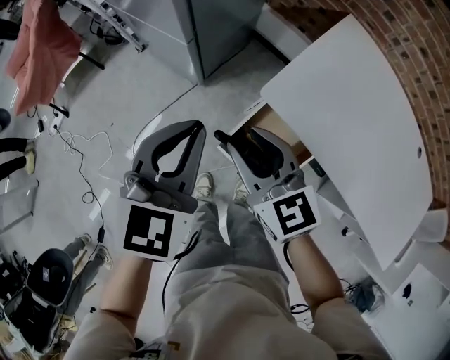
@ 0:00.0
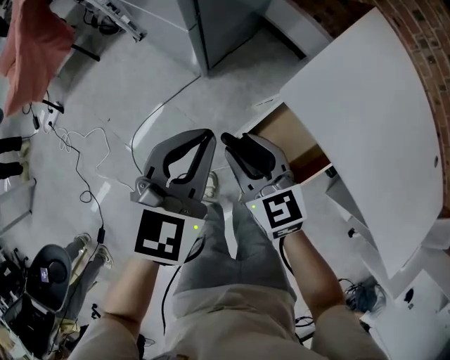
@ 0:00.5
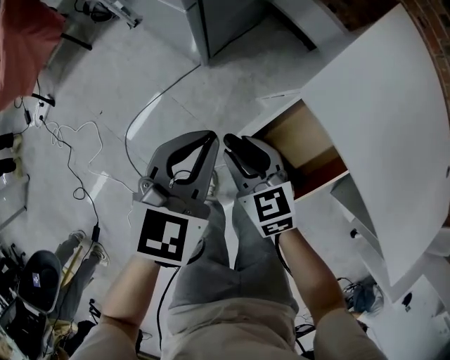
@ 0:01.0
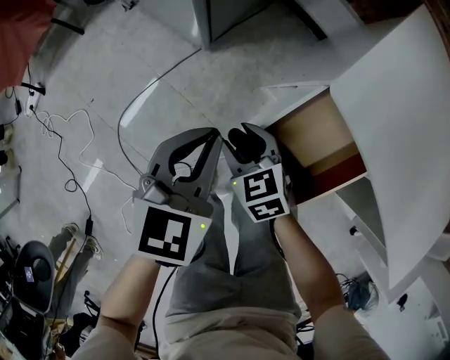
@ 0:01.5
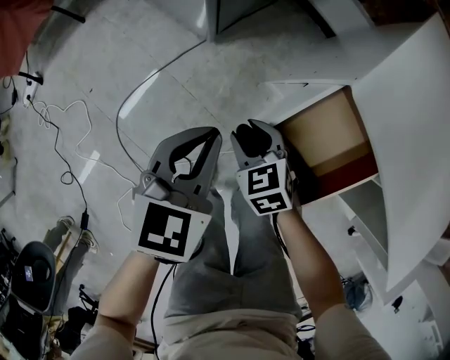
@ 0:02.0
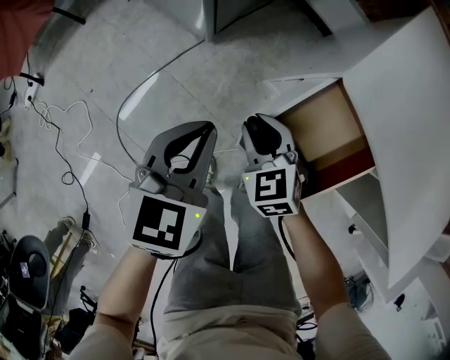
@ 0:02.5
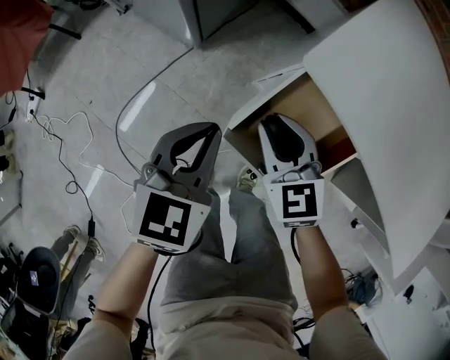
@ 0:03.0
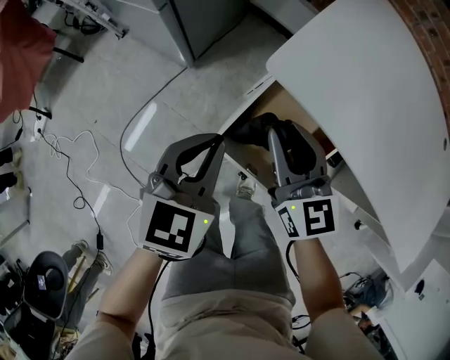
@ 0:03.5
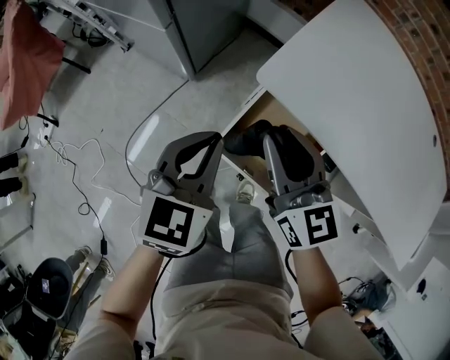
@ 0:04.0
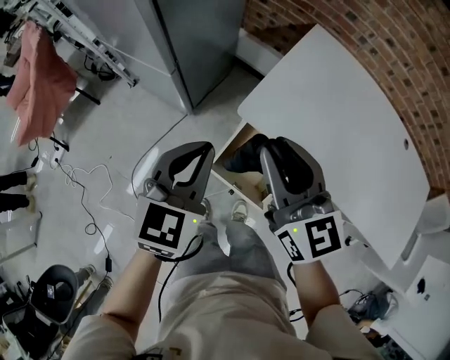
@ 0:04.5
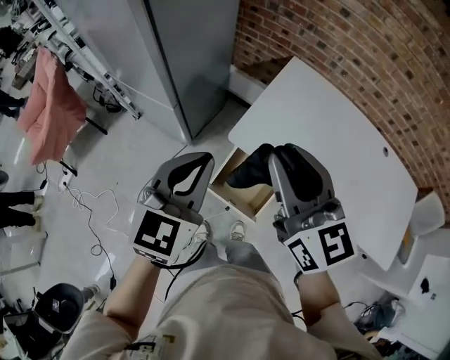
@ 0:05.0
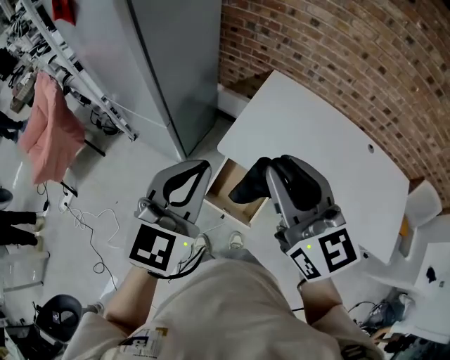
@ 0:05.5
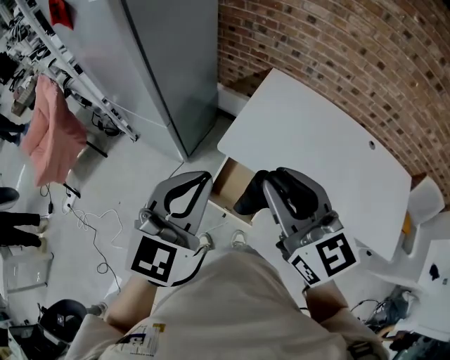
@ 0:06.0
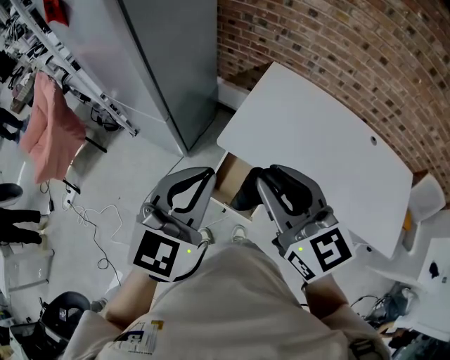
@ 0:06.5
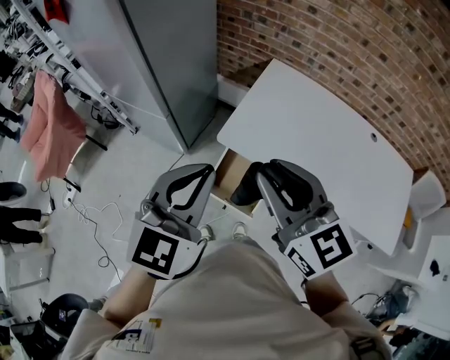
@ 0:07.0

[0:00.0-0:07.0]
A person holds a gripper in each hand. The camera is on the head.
0:00.0 to 0:02.0: Both grippers travel together downward, some 35 cm. The right gripper tips its fingers downward by roughly 30 degrees.
0:02.0 to 0:03.5: The right gripper travels upward and to the right by roughly 30 cm, and angles its fingers upward, by approximately 40 degrees. The left gripper shifts about 15 cm upward and to the right.
0:03.5 to 0:05.0: The two grippers go about 40 cm upward.
0:05.0 to 0:07.0: The left gripper shifts about 10 cm backward, upward and to the right. Meanwhile the right gripper shifts approximately 5 cm backward.

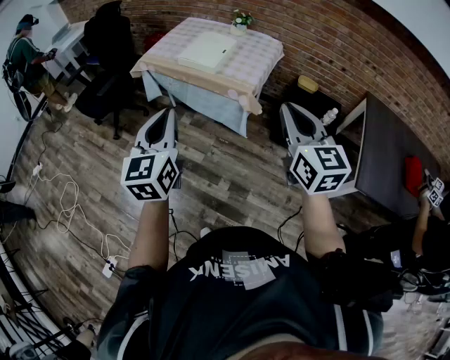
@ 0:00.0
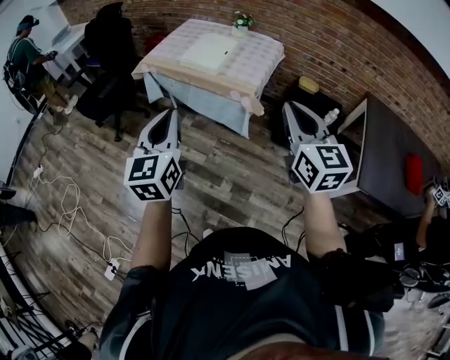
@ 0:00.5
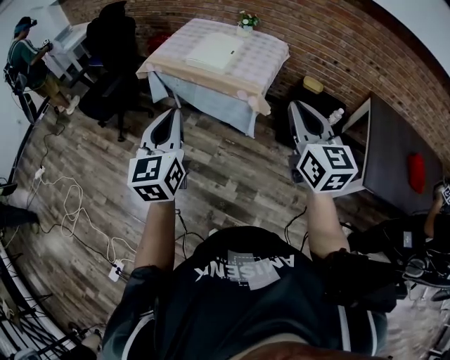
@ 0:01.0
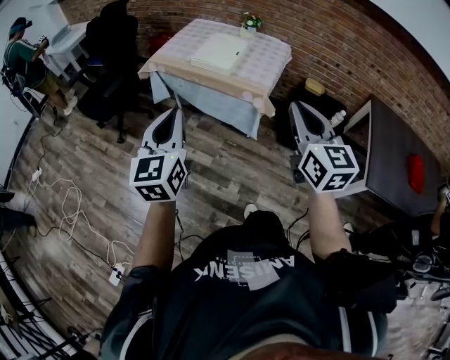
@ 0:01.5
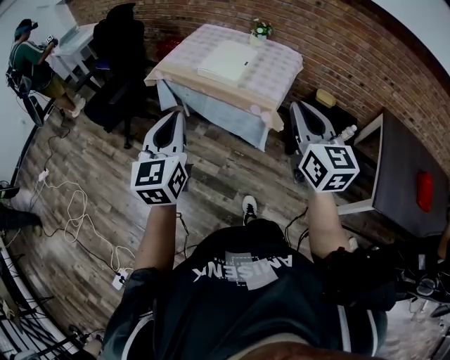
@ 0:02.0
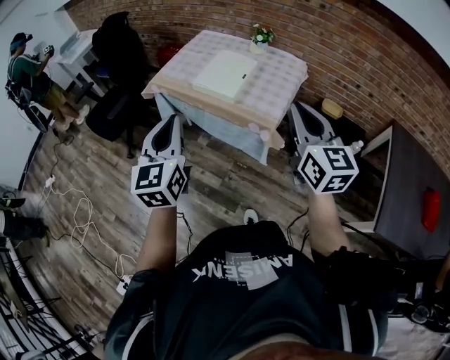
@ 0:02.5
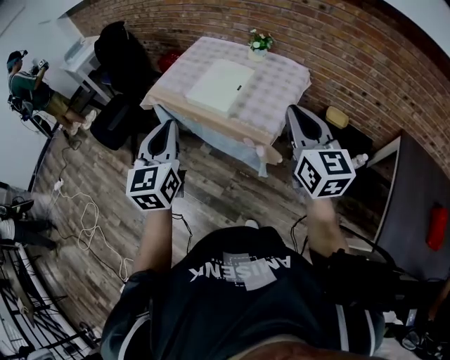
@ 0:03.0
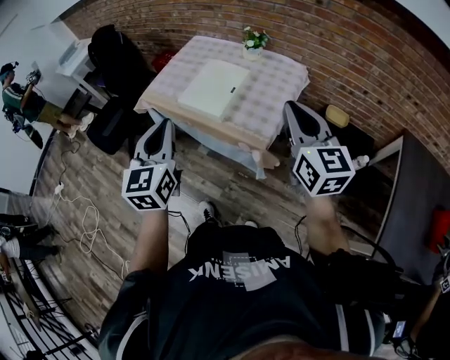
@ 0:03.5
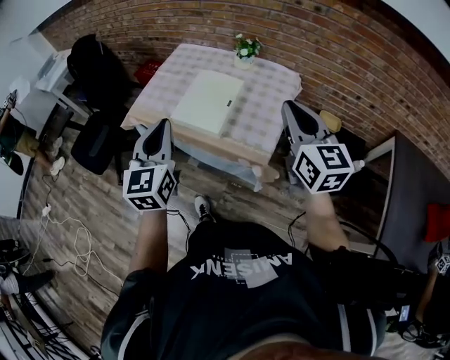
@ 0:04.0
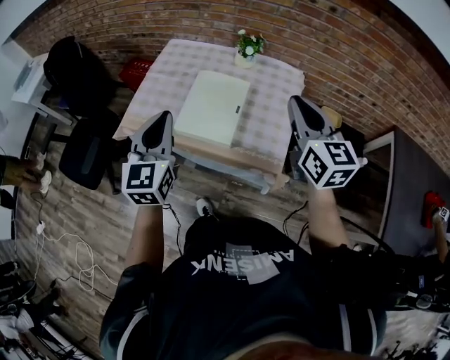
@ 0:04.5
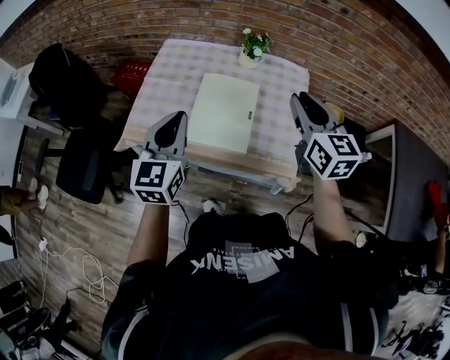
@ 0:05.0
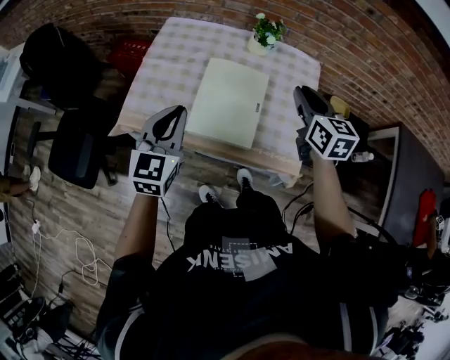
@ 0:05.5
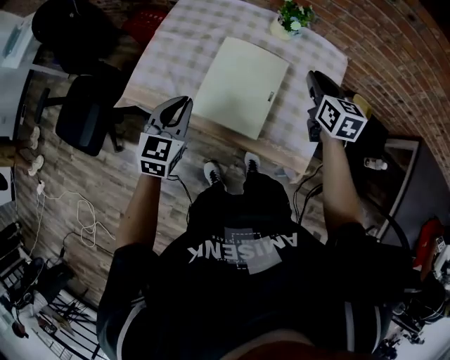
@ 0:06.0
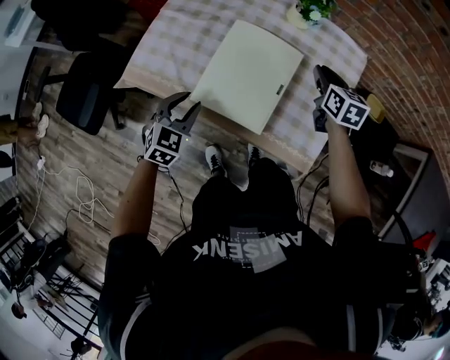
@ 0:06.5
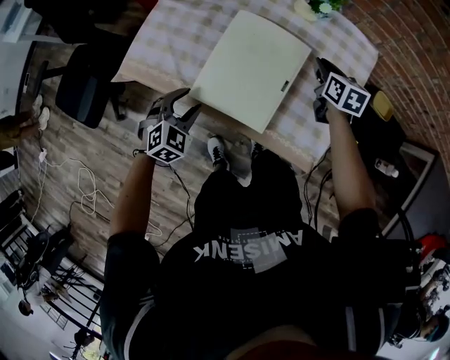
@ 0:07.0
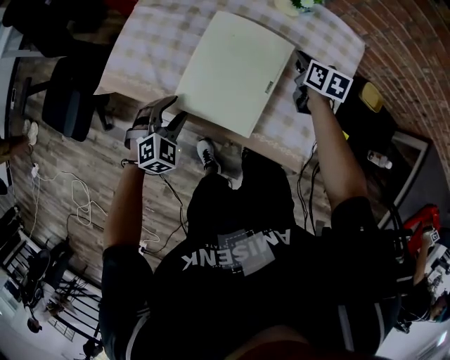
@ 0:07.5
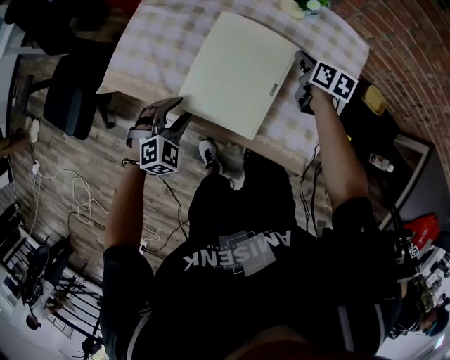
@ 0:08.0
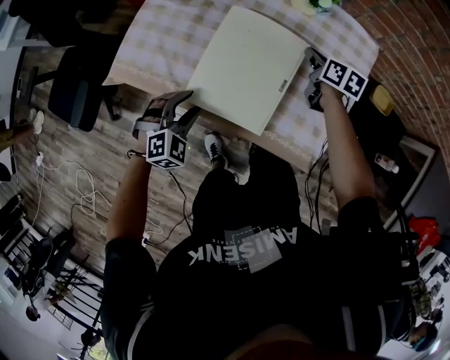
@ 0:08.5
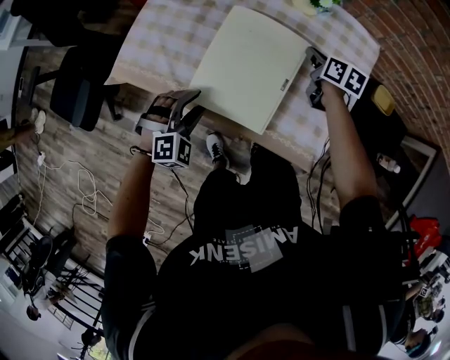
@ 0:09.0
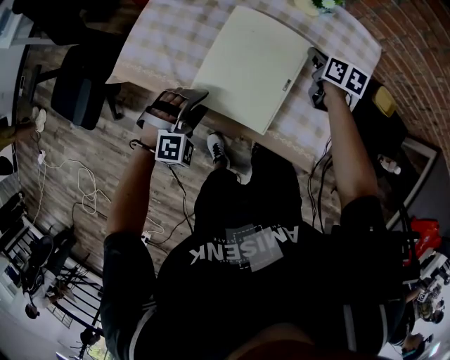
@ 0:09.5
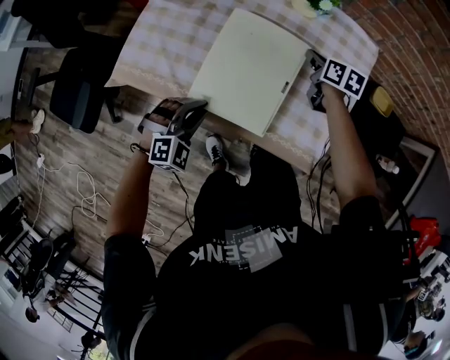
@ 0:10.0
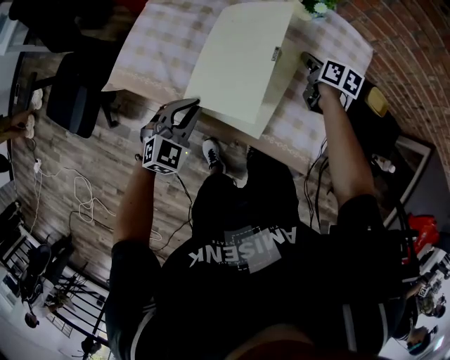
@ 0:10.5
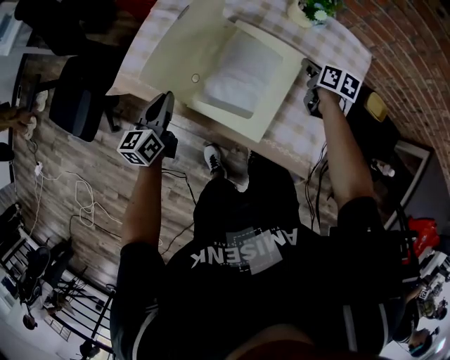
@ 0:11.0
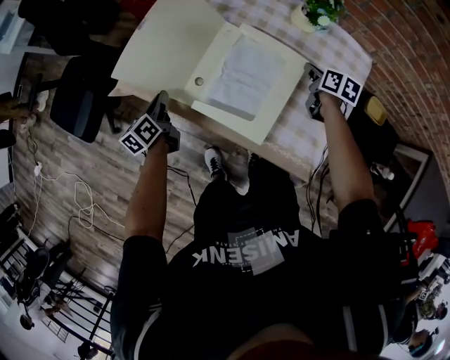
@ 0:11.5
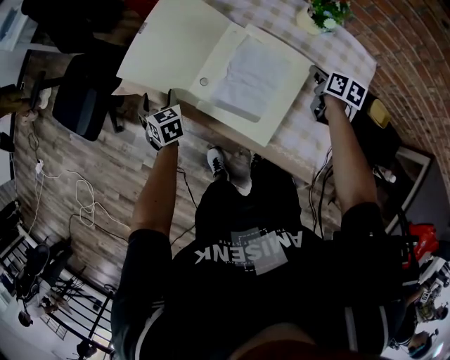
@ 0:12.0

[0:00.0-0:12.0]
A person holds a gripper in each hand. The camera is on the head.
0:00.0 to 0:02.0: The left gripper heads to the left and forward, covering approximately 10 cm, while the right gripper heads forward and to the left, covering some 15 cm.
0:02.0 to 0:04.0: Both grippers travel together forward, some 35 cm.
0:04.0 to 0:06.0: The right gripper travels forward and downward by about 35 cm, and swivels roughly 30 degrees, while the left gripper travels forward, downward and to the left by about 35 cm, and changes its angle by approximately 30 degrees.
0:06.0 to 0:08.0: The left gripper shifts some 15 cm downward, turns by some 40 degrees, and opens; the right gripper is displaced downward and forward by about 20 cm, and turns by roughly 30 degrees.
0:08.0 to 0:10.0: The left gripper closes.
0:10.0 to 0:12.0: The left gripper changes place by approximately 25 cm, twists approximately 70 degrees counterclockwise, seen from behind, and opens up.

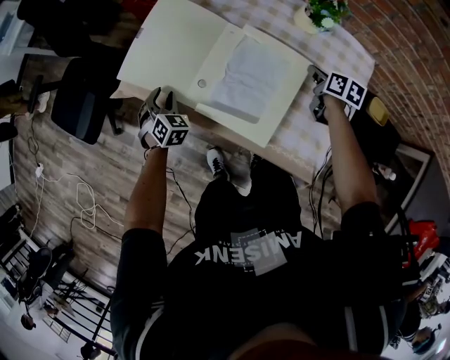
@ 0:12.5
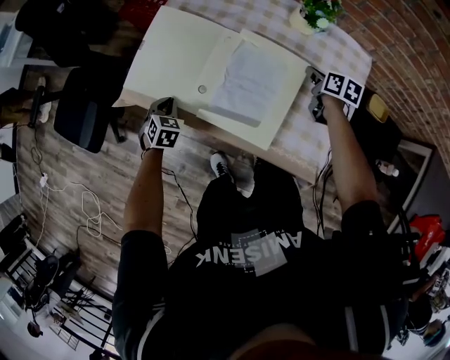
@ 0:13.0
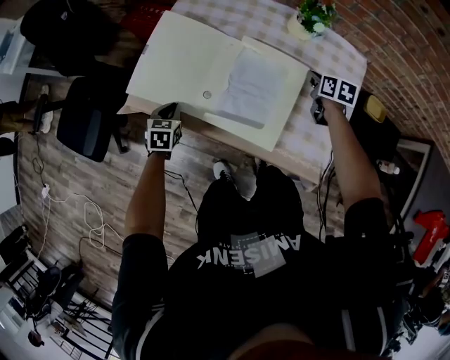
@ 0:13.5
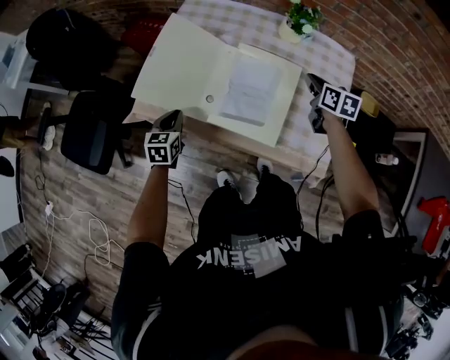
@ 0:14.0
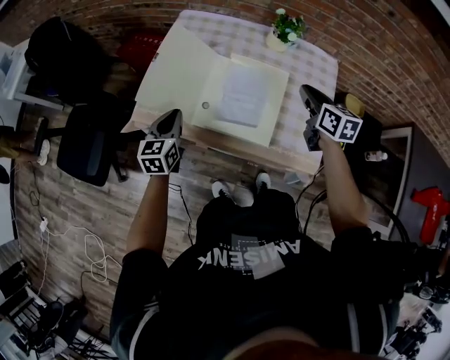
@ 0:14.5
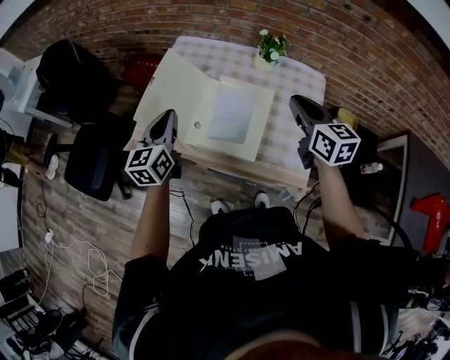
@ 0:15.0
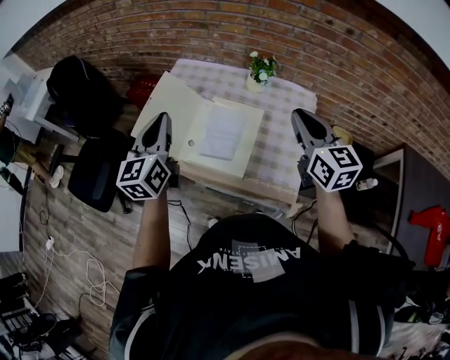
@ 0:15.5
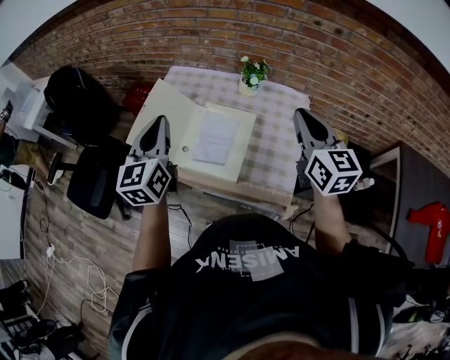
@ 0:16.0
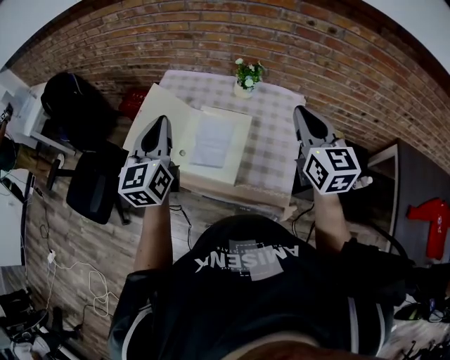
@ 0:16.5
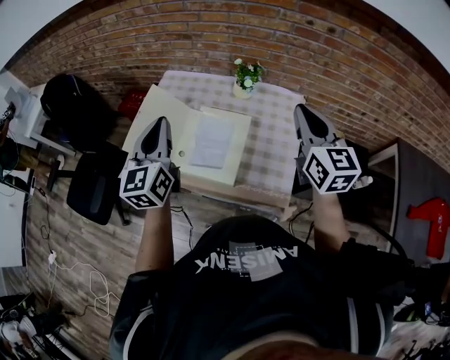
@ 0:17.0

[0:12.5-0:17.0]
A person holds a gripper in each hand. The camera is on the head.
0:12.5 to 0:14.5: The two grippers go approximately 20 cm upward. The left gripper turns by roughly 50 degrees, and closes its fingers. The right gripper turns by some 30 degrees.
0:14.5 to 0:17.0: Both grippers travel together upward and to the right, approximately 25 cm. The right gripper rotates approximately 30 degrees. Meanwhile the left gripper swivels approximately 20 degrees.

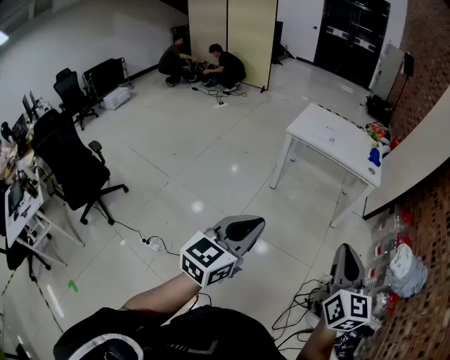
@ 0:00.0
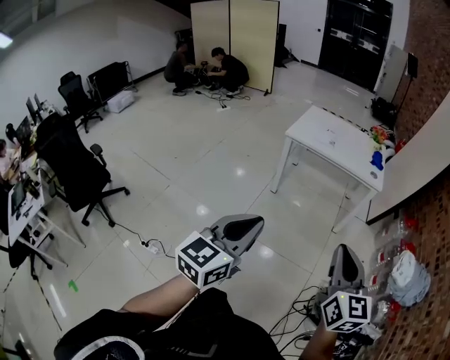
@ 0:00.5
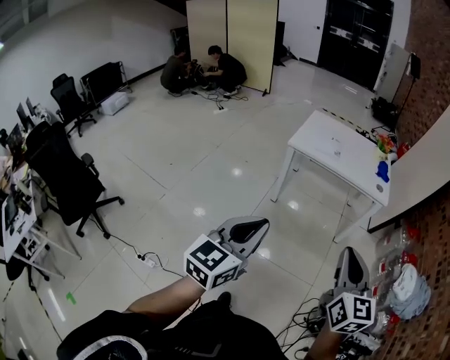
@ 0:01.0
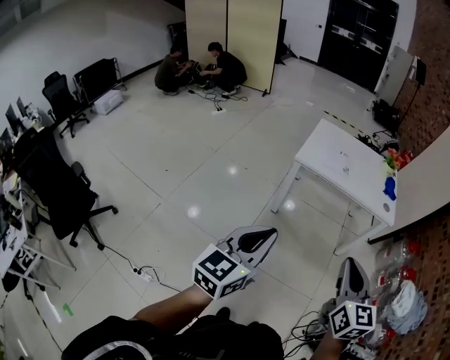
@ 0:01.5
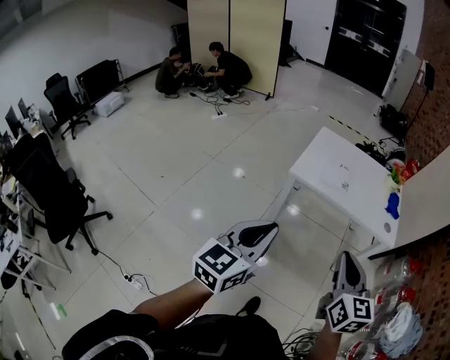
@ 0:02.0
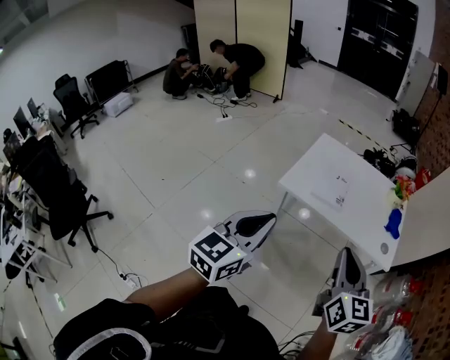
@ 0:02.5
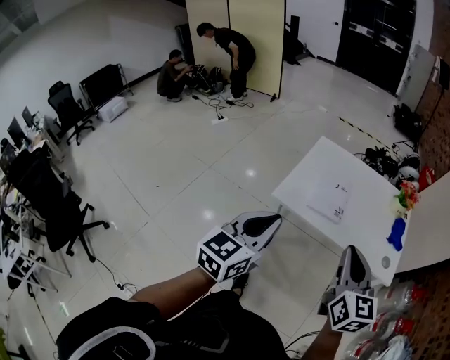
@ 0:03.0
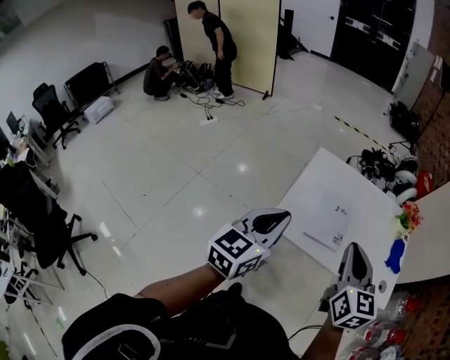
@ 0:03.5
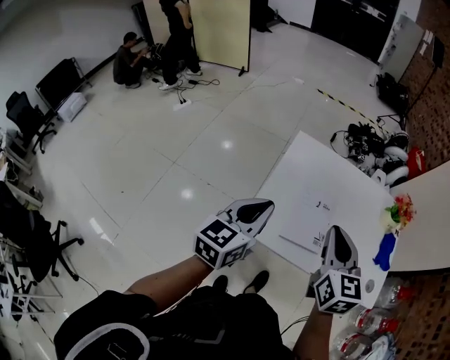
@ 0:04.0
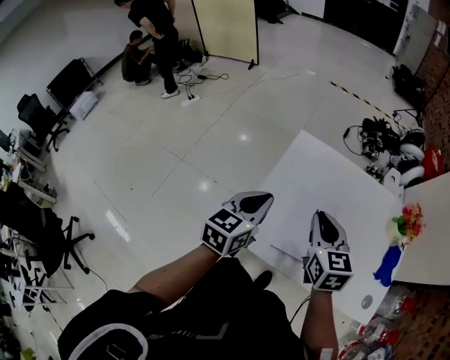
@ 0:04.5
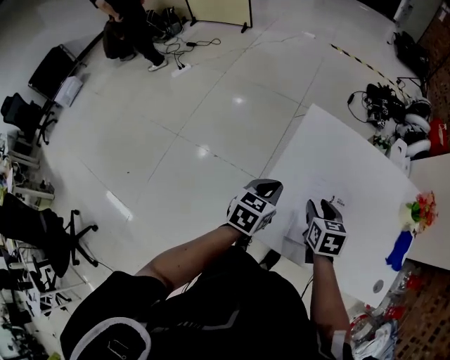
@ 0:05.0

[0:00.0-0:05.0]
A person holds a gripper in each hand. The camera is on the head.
0:00.0 to 0:02.5: The two grippers travel together, forward, some 60 cm.
0:02.5 to 0:05.0: Both grippers are carried forward, some 60 cm. Both grippers move downward, approximately 30 cm. The right gripper tilts its fingers roughly 40 degrees downward, and opens its fingers; the left gripper rotates some 30 degrees.
